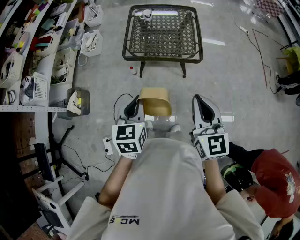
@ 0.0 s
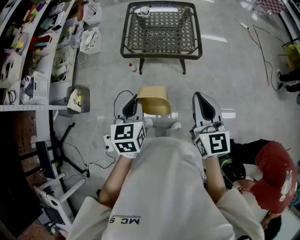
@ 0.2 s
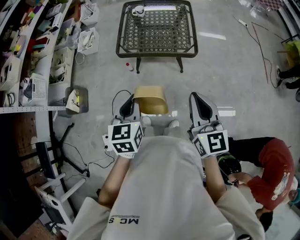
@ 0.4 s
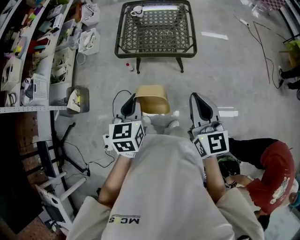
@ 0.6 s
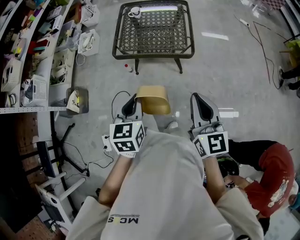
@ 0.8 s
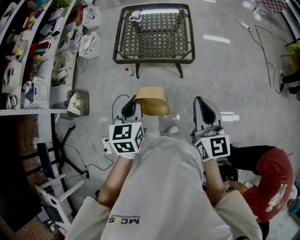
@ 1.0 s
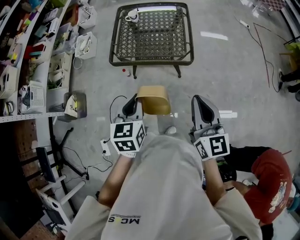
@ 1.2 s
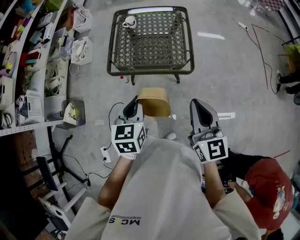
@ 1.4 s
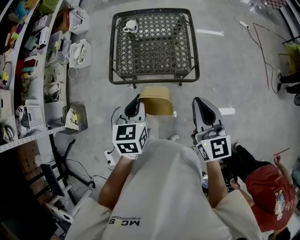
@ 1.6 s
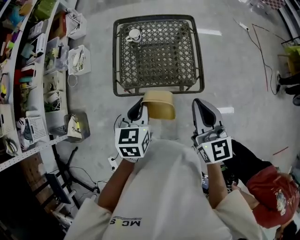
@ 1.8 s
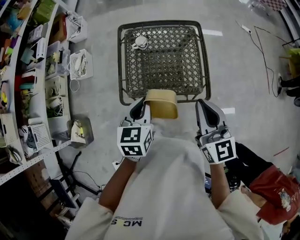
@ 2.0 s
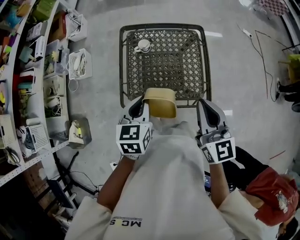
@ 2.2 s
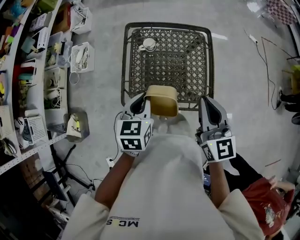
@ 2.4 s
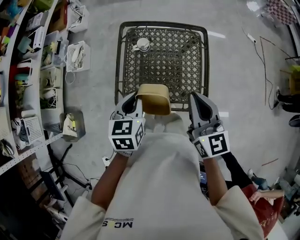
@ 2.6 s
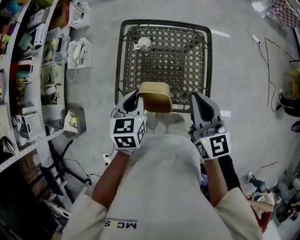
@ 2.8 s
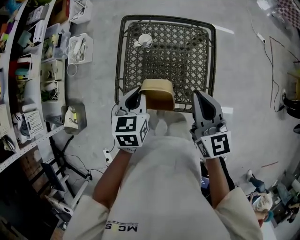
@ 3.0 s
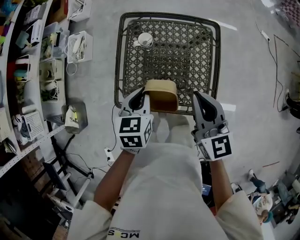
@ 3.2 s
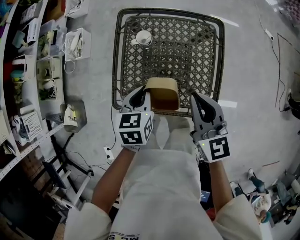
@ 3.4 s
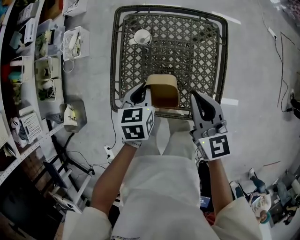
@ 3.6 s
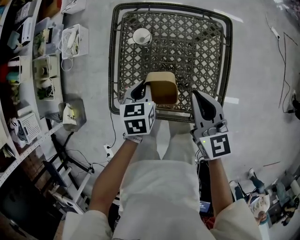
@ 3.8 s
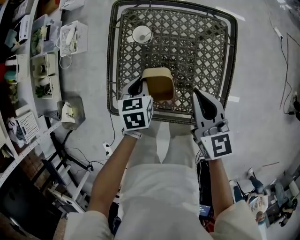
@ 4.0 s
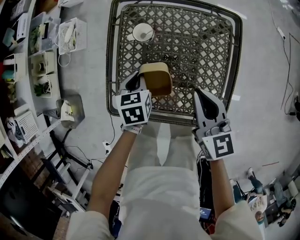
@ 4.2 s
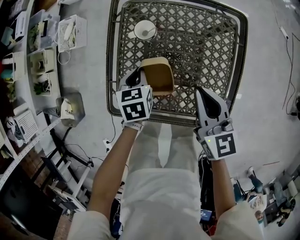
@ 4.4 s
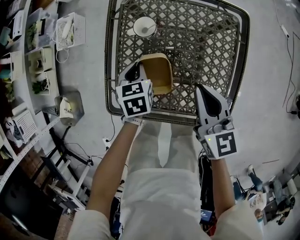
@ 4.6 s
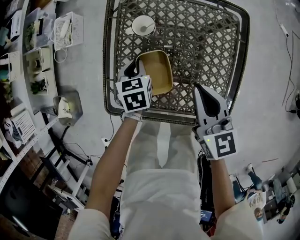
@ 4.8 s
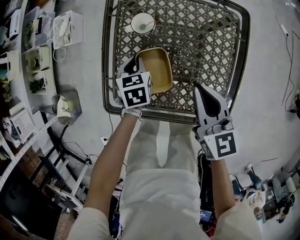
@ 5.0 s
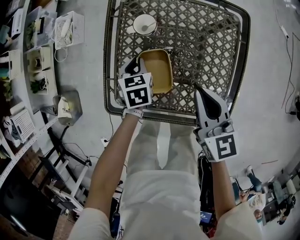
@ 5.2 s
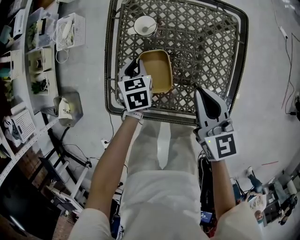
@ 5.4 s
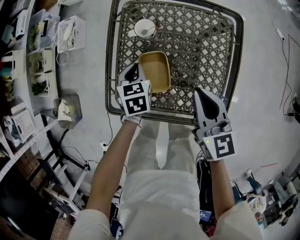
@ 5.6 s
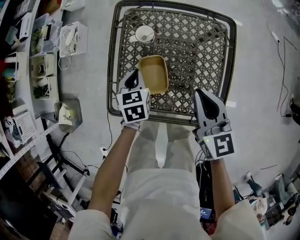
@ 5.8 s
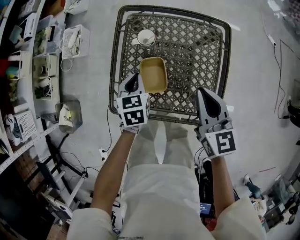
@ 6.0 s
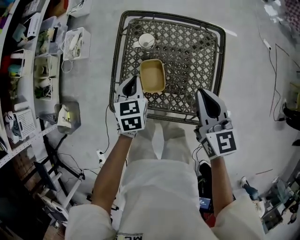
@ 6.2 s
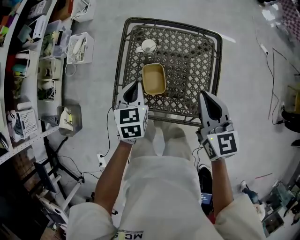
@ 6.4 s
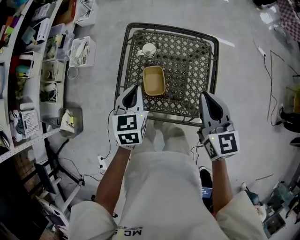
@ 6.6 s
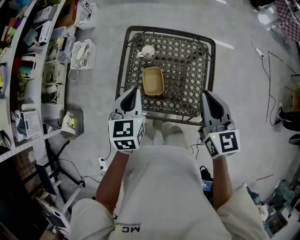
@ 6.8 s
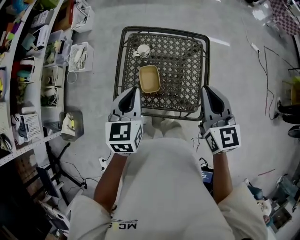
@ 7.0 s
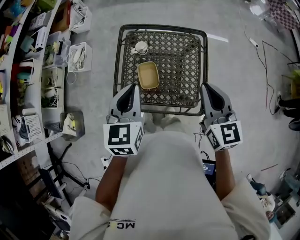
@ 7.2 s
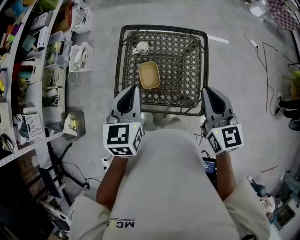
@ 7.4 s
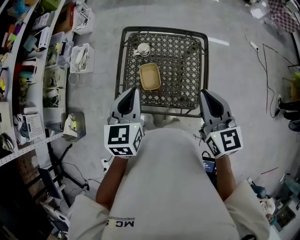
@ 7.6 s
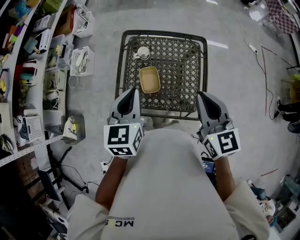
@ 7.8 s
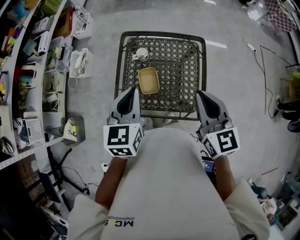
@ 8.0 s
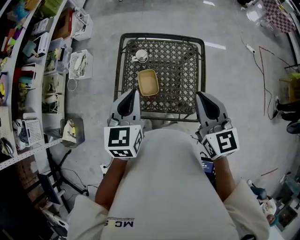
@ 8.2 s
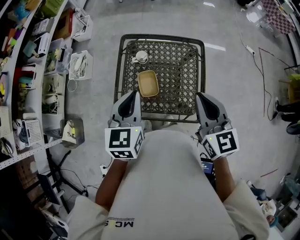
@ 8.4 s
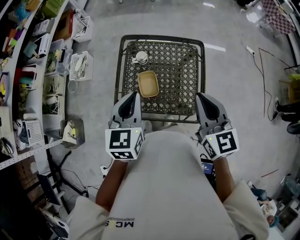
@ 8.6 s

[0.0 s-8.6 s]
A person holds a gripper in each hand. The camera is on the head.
0.0 to 1.4 s: The grippers both shift forward and to the right by approximately 15 cm.
1.4 to 2.8 s: Both grippers travel together forward, roughly 35 cm.
2.8 to 4.4 s: Both grippers travel together downward, approximately 25 cm.
4.4 to 5.8 s: There are only small adjustments of the grippers.
5.8 to 7.2 s: The left gripper travels upward by roughly 30 cm, and rotates approximately 30 degrees. The right gripper moves upward, approximately 20 cm.
7.2 to 8.6 s: The grippers stay close to where they were, moving slightly.

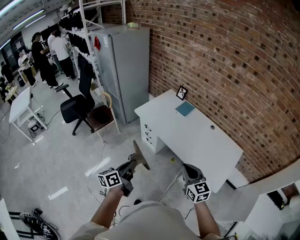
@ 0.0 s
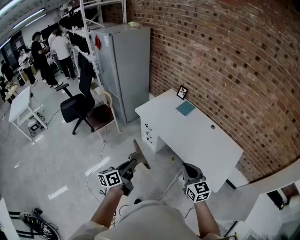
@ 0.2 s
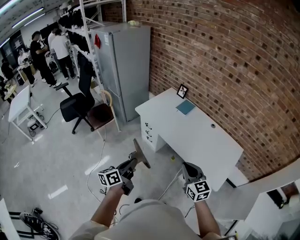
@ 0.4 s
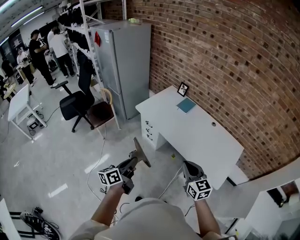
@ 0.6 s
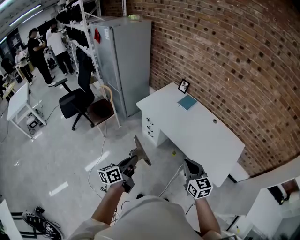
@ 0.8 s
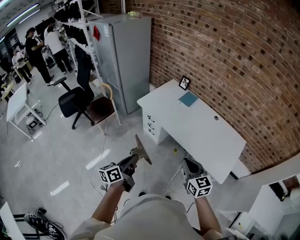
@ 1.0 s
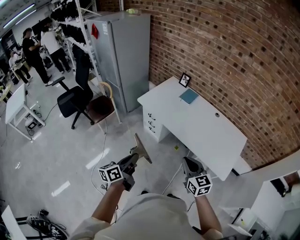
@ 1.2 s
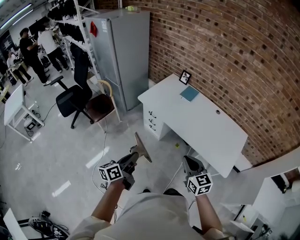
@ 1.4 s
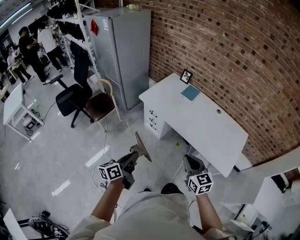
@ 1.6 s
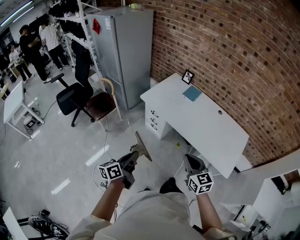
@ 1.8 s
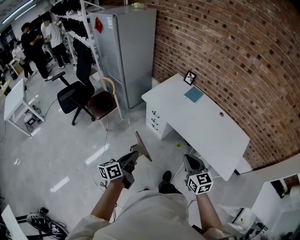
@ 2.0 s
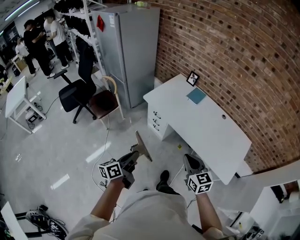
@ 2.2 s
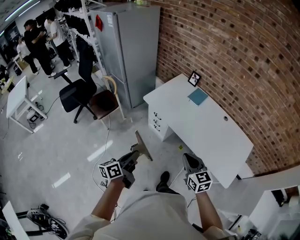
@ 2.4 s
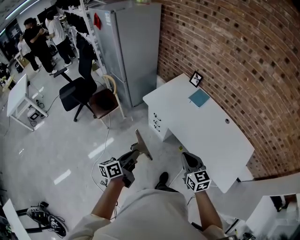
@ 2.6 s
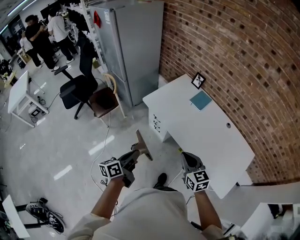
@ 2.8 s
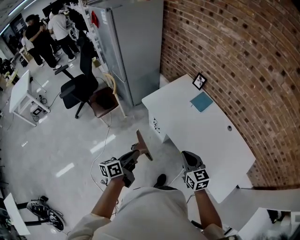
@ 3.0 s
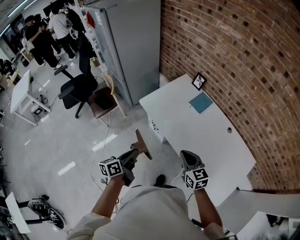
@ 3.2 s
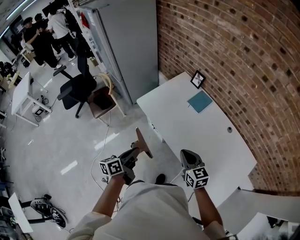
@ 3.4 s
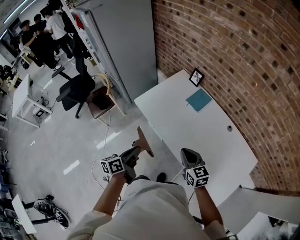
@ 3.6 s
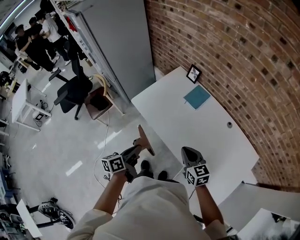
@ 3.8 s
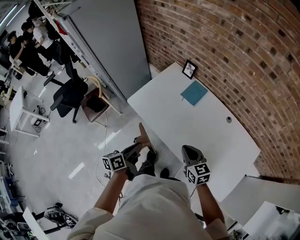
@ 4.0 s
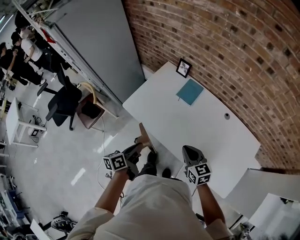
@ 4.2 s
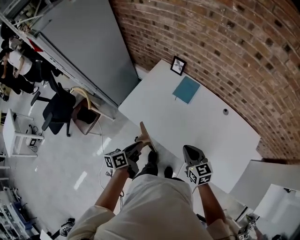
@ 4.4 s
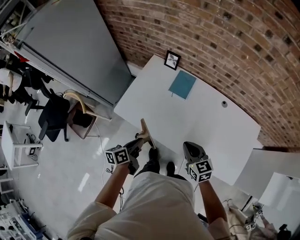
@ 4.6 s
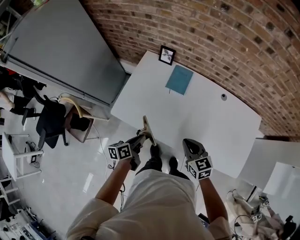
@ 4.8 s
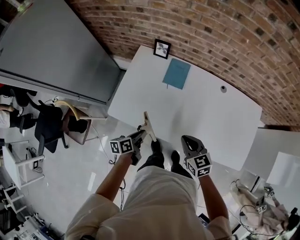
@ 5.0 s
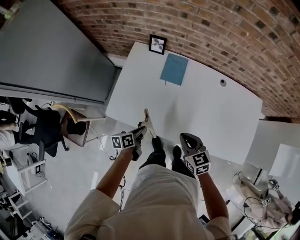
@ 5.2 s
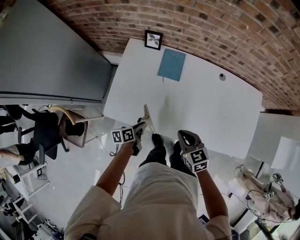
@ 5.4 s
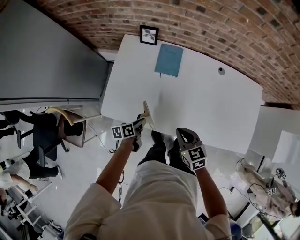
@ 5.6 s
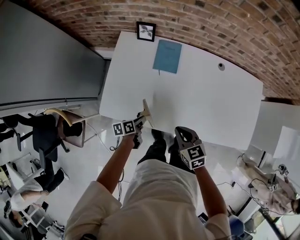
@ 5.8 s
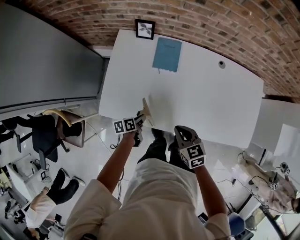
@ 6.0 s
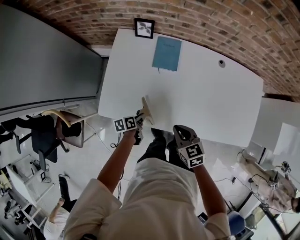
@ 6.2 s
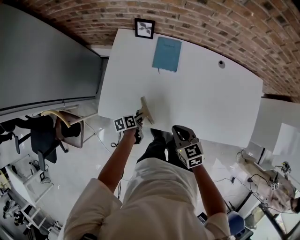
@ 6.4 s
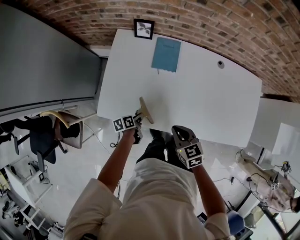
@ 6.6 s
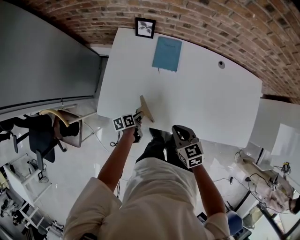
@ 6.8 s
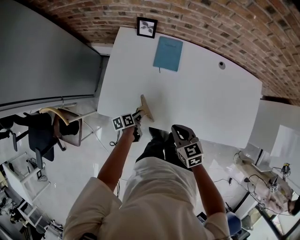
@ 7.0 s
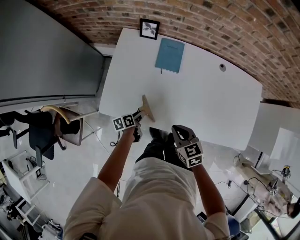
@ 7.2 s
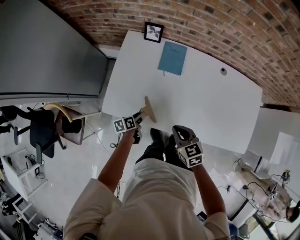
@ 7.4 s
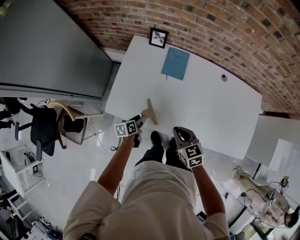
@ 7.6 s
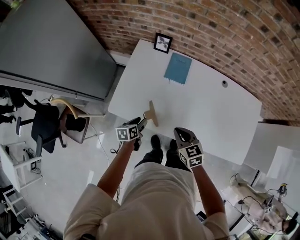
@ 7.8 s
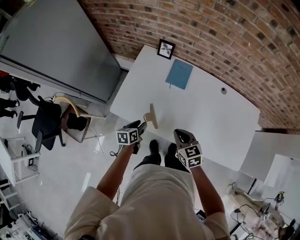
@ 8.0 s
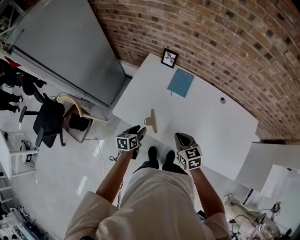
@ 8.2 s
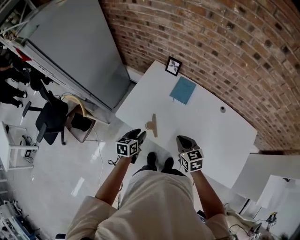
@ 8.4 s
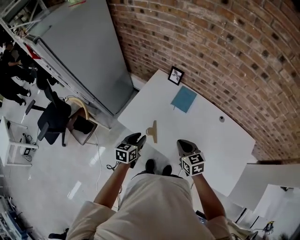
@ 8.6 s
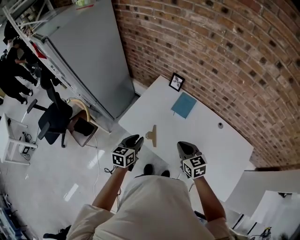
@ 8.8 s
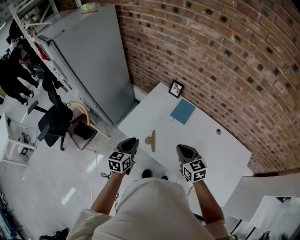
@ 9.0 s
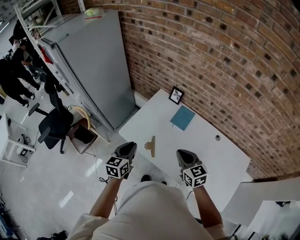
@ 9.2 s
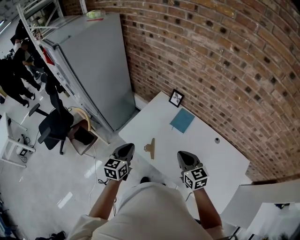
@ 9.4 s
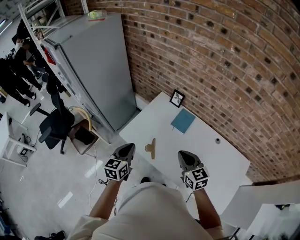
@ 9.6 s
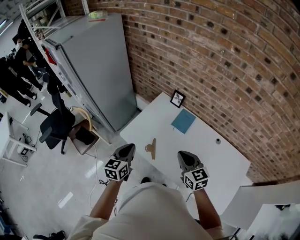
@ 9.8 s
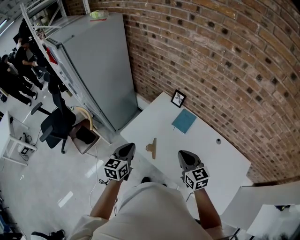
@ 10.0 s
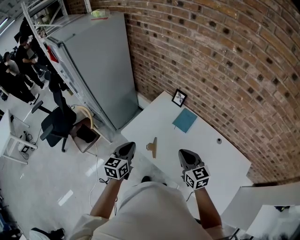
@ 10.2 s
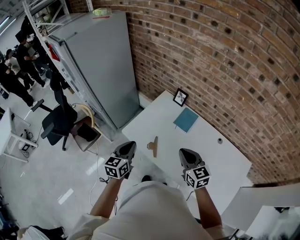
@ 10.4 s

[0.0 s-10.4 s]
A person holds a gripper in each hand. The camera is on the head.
0.0 to 1.4 s: The two grippers go some 10 cm to the left.
1.4 to 3.0 s: The grippers both shift forward by about 20 cm.
3.0 to 4.4 s: The right gripper shifts approximately 20 cm forward, to the right and downward. Meanwhile the left gripper moves forward and to the right, roughly 25 cm.
4.4 to 6.0 s: The right gripper shifts approximately 10 cm downward, and swivels roughly 20 degrees; the left gripper moves downward, some 25 cm, and swivels about 40 degrees.
6.0 to 7.4 s: The left gripper opens up.
7.4 to 9.0 s: The right gripper moves upward, approximately 15 cm, and rotates roughly 20 degrees. Meanwhile the left gripper shifts approximately 30 cm upward, rotates approximately 50 degrees, and closes its fingers.
9.0 to 10.4 s: The left gripper heads upward, covering approximately 5 cm.

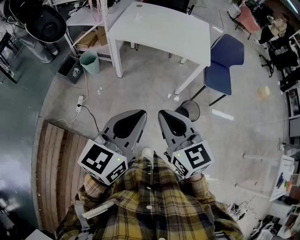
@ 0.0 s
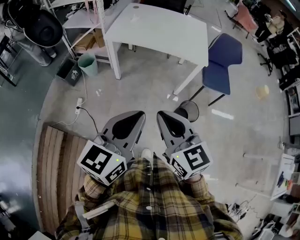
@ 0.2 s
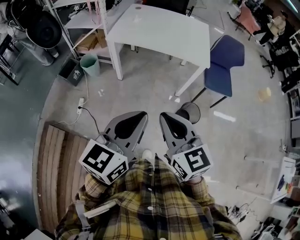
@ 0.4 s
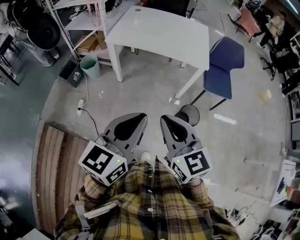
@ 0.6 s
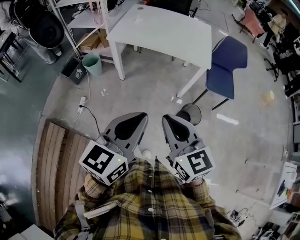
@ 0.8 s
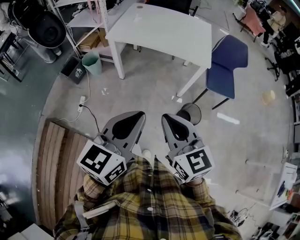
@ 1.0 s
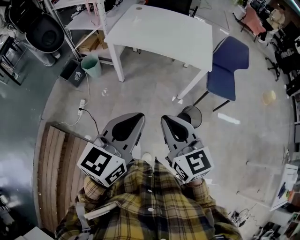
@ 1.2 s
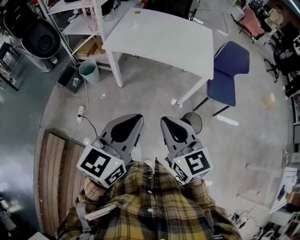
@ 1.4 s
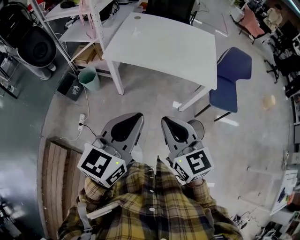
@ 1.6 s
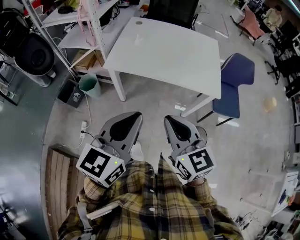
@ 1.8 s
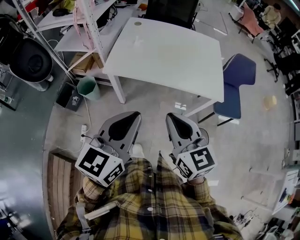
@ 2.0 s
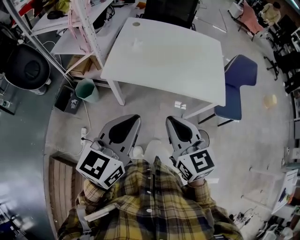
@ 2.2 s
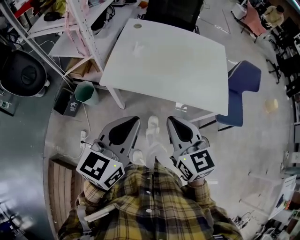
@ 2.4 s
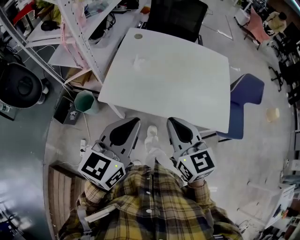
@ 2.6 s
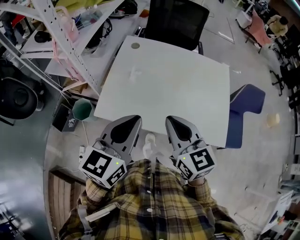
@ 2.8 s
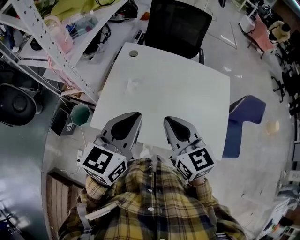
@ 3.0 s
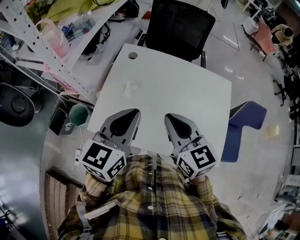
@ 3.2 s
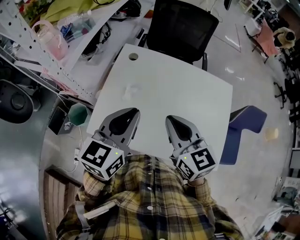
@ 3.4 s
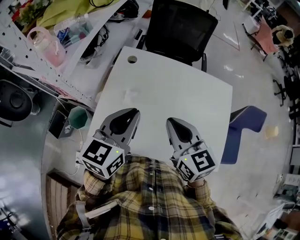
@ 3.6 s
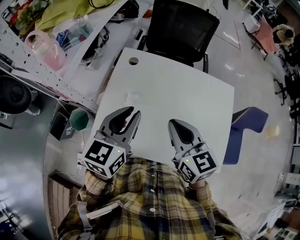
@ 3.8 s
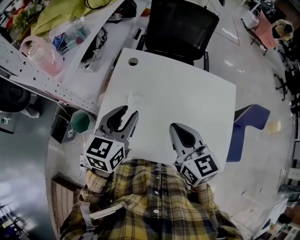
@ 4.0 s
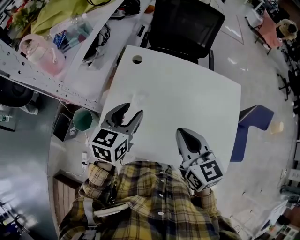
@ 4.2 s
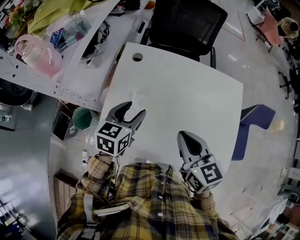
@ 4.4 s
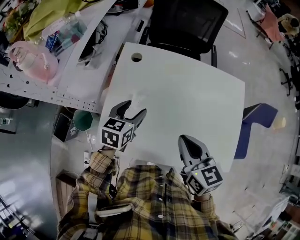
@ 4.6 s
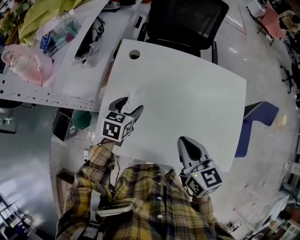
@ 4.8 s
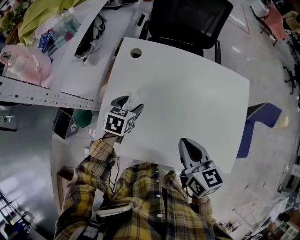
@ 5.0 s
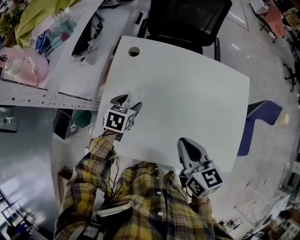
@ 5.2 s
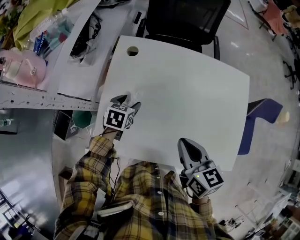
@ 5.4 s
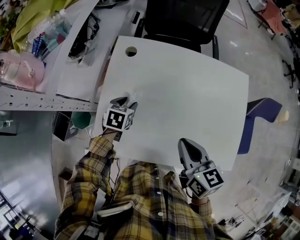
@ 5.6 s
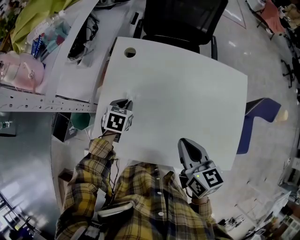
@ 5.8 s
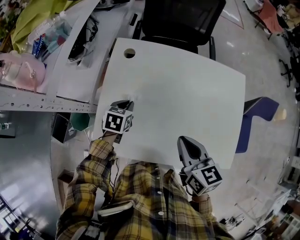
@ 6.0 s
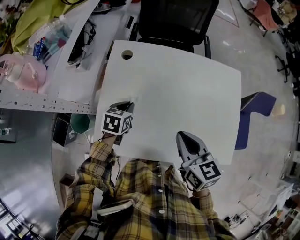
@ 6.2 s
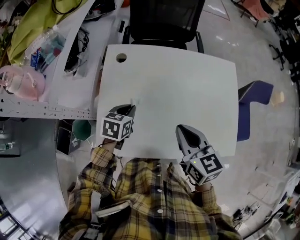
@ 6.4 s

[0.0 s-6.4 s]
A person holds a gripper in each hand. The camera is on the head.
0.0 to 1.6 s: The grippers both shift forward by approximately 20 cm.
1.6 to 3.2 s: Both grippers are carried forward, approximately 50 cm.
3.2 to 4.8 s: The right gripper is displaced downward by approximately 10 cm, and rotates about 20 degrees. The left gripper shifts approximately 30 cm downward and forward, tilts its fingers some 30 degrees downward, and opens.
4.8 to 6.4 s: The left gripper closes its fingers.
